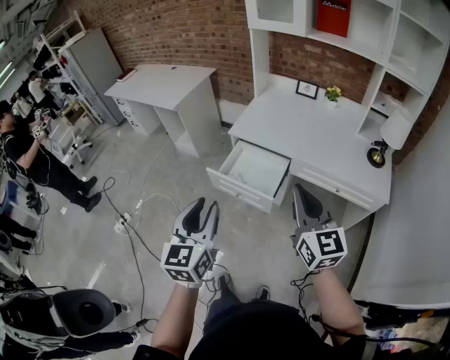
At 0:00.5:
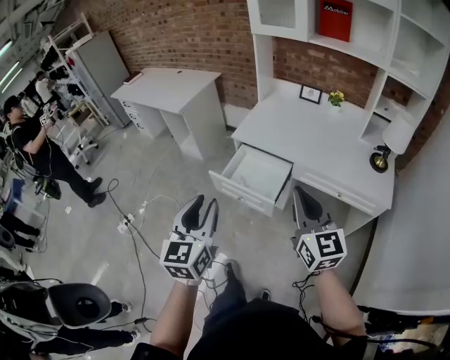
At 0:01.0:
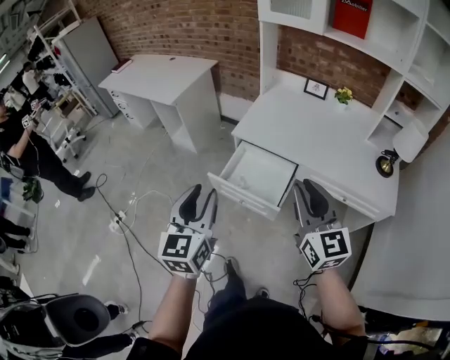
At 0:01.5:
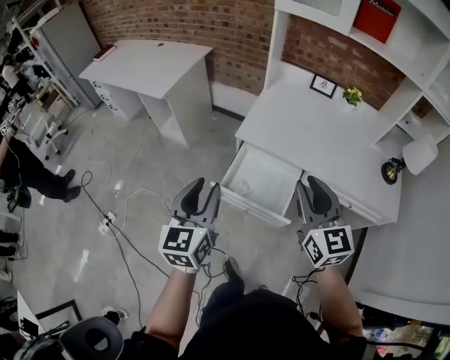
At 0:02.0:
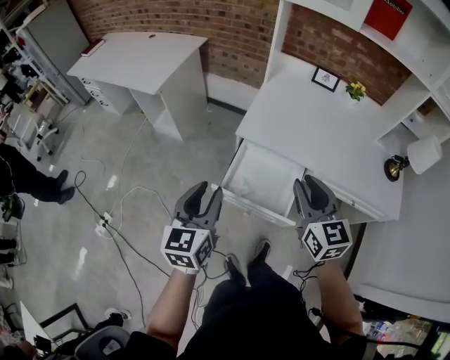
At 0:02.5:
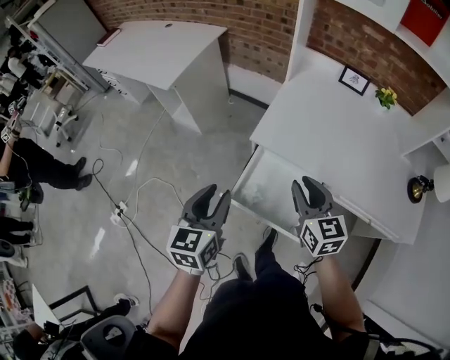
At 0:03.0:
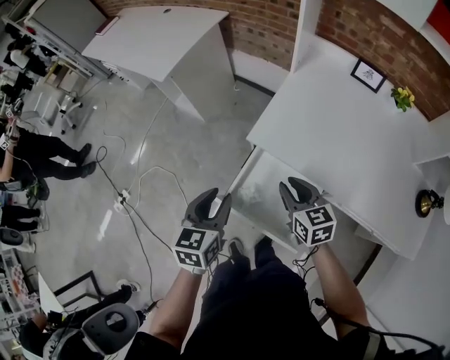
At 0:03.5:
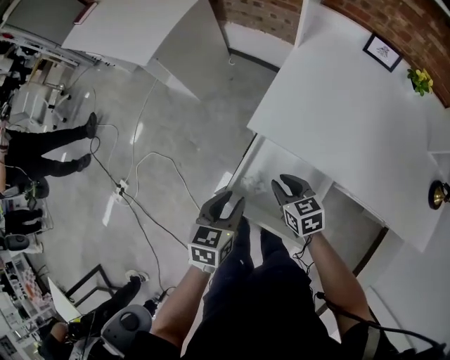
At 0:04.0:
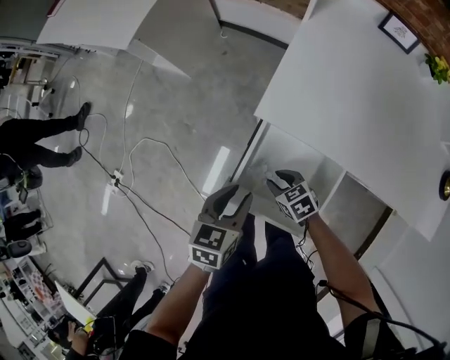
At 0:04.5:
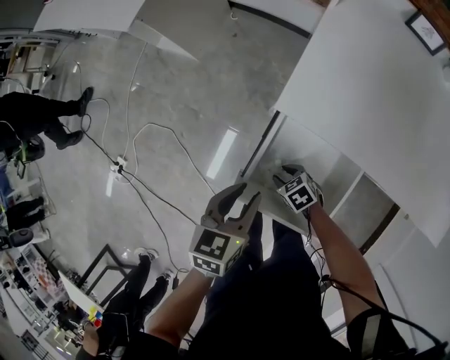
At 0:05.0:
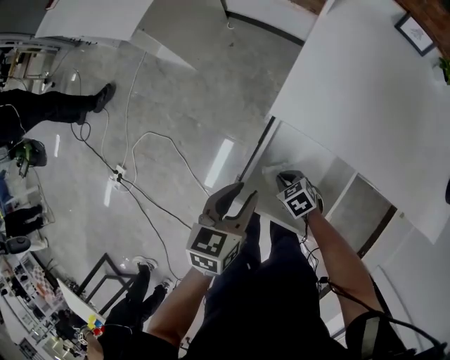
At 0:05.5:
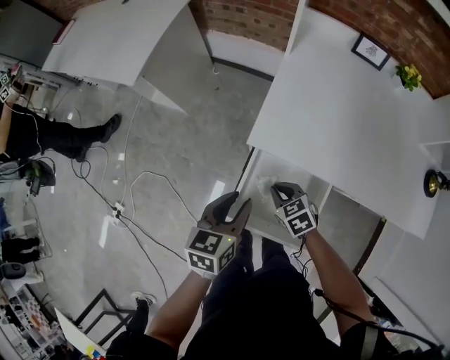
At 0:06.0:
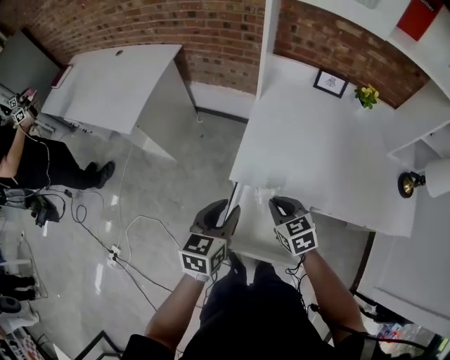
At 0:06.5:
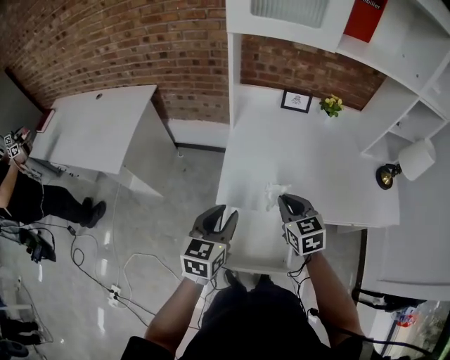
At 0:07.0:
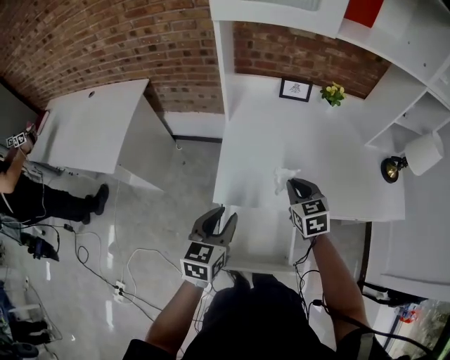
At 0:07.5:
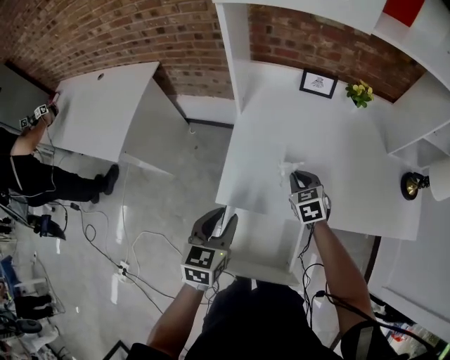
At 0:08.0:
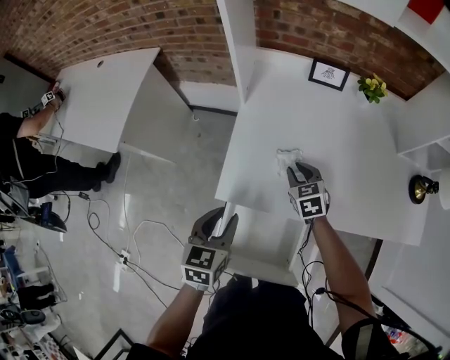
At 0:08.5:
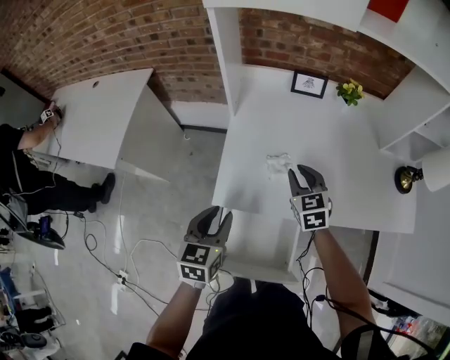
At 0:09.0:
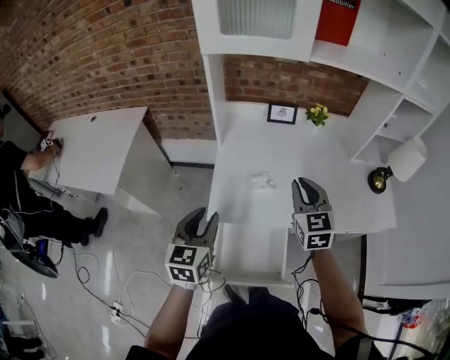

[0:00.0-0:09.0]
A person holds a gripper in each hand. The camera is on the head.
0:00.0 to 0:02.0: The two grippers go about 30 cm forward and to the left. The right gripper opens.
0:02.0 to 0:04.5: The right gripper goes about 50 cm downward, and points its fingers approximately 50 degrees further downward, while the left gripper is displaced downward by some 25 cm, and swivels roughly 30 degrees.
0:04.5 to 0:07.0: The left gripper is displaced upward by some 20 cm, and turns by about 30 degrees. The right gripper moves upward, approximately 35 cm, changes its angle by some 60 degrees, and closes its fingers.
0:07.0 to 0:09.0: The left gripper travels upward by about 5 cm; the right gripper heads upward, covering some 10 cm, and turns by roughly 20 degrees.

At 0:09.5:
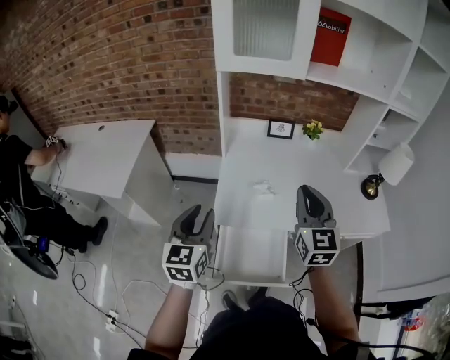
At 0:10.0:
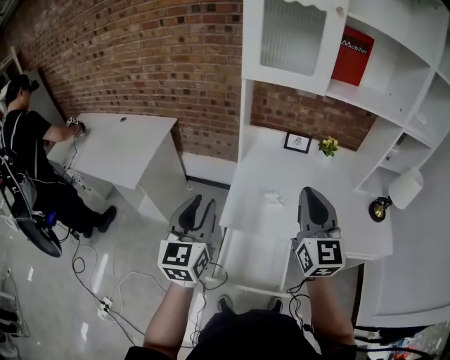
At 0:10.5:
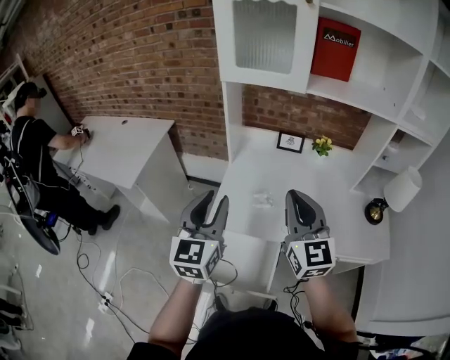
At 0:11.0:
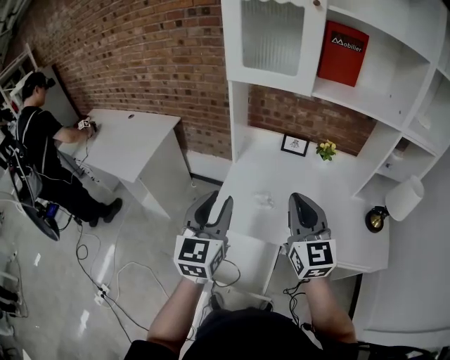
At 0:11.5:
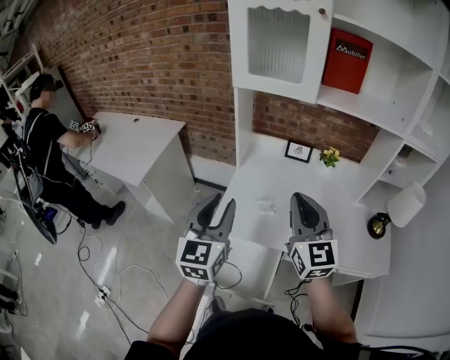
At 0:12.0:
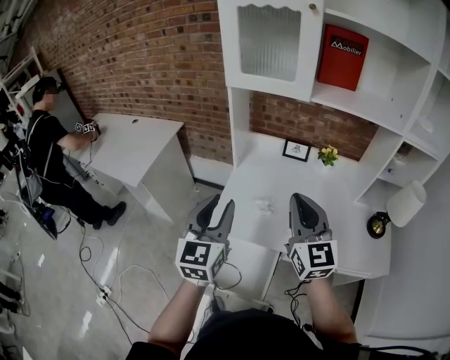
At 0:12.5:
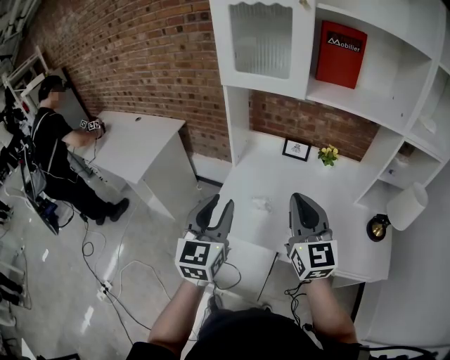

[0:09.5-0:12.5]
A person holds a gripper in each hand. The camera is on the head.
0:09.5 to 0:11.0: The left gripper is displaced to the right and upward by some 15 cm.
0:11.0 to 0:12.5: The grippers make only small movements.

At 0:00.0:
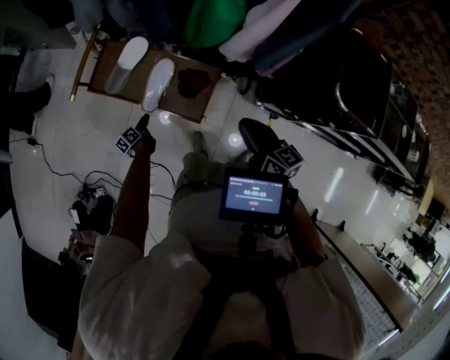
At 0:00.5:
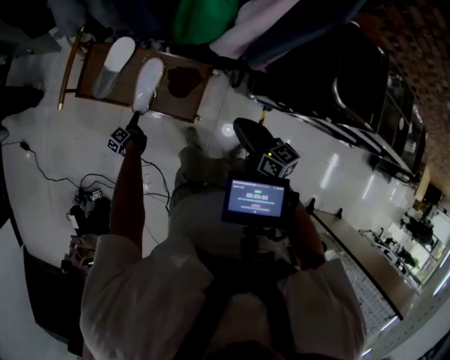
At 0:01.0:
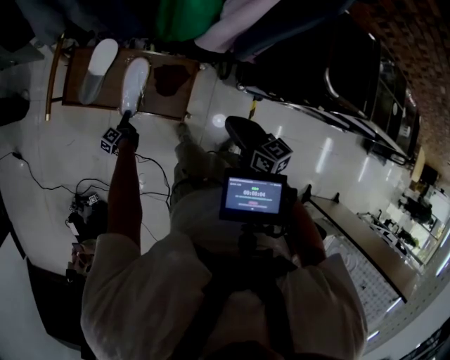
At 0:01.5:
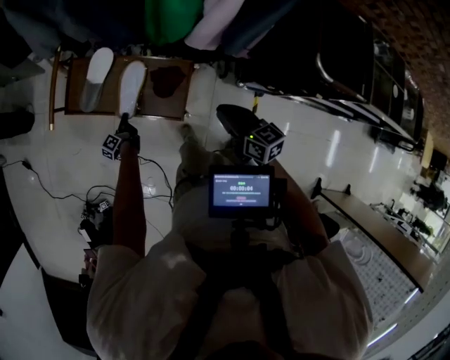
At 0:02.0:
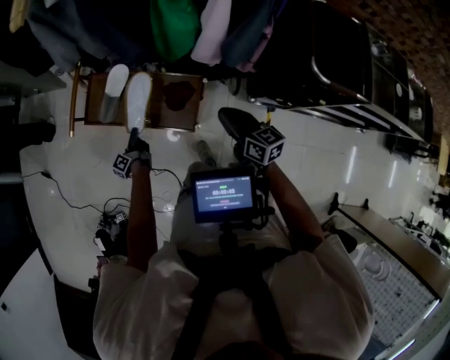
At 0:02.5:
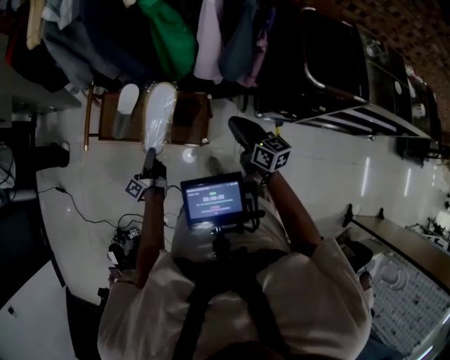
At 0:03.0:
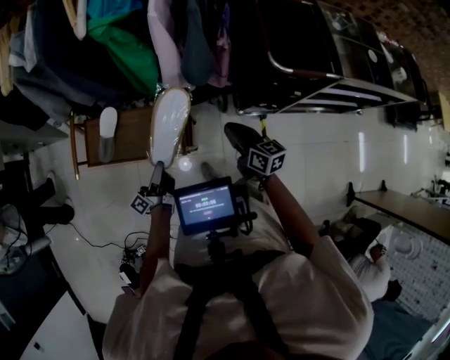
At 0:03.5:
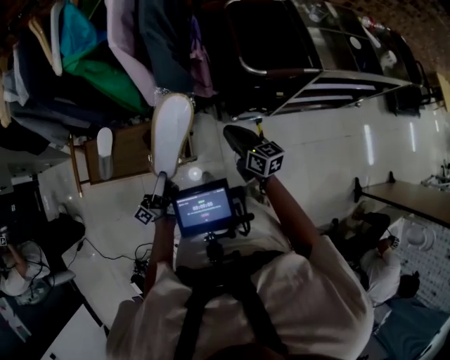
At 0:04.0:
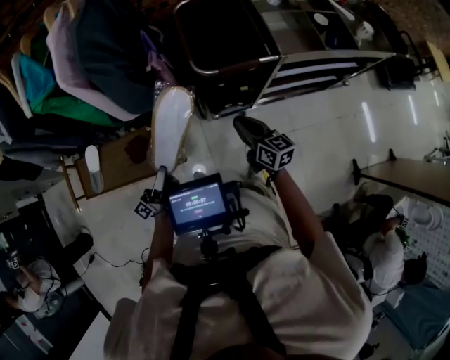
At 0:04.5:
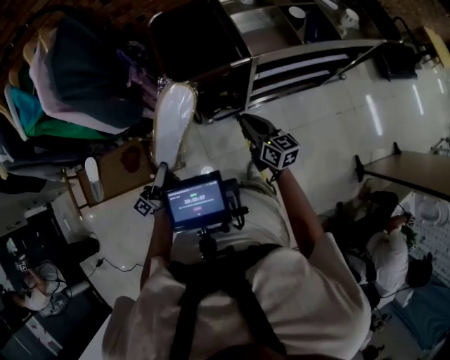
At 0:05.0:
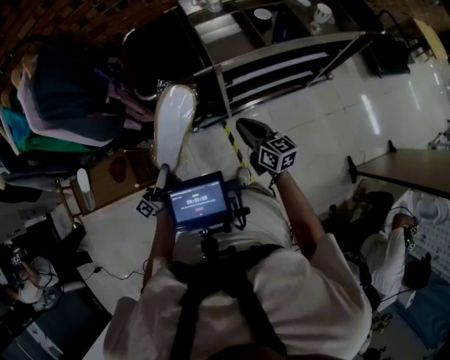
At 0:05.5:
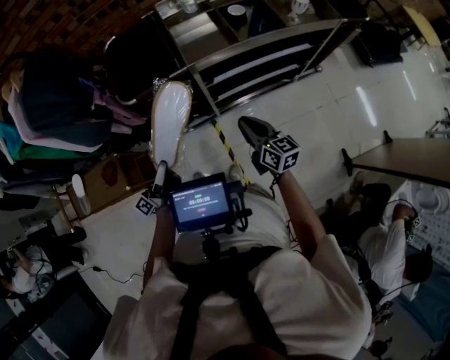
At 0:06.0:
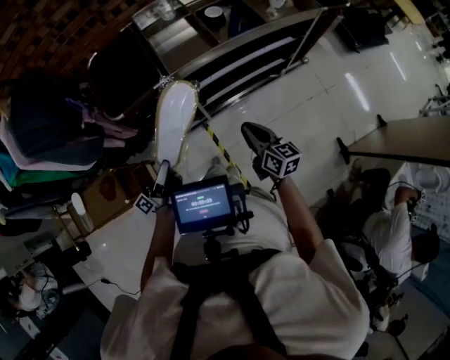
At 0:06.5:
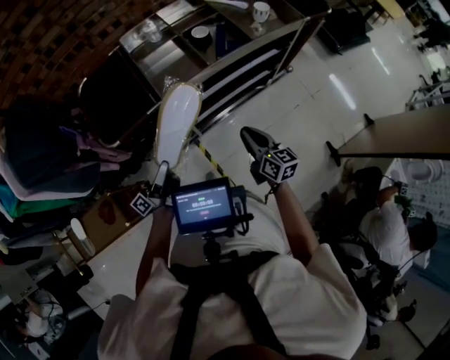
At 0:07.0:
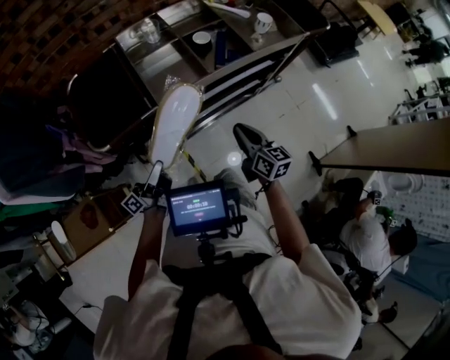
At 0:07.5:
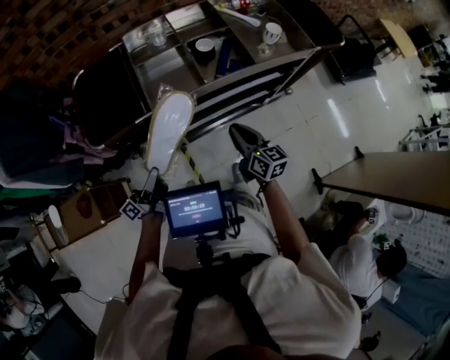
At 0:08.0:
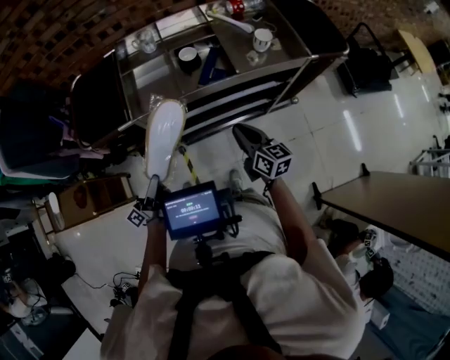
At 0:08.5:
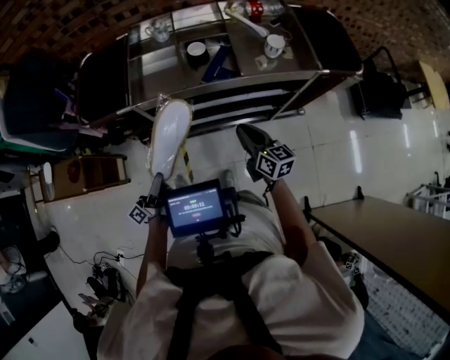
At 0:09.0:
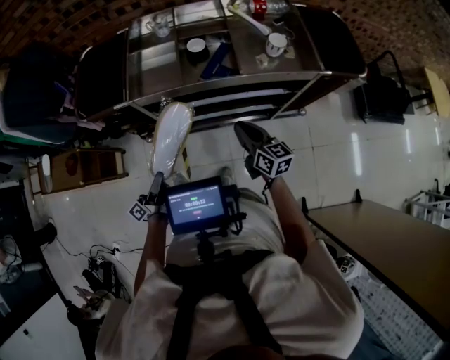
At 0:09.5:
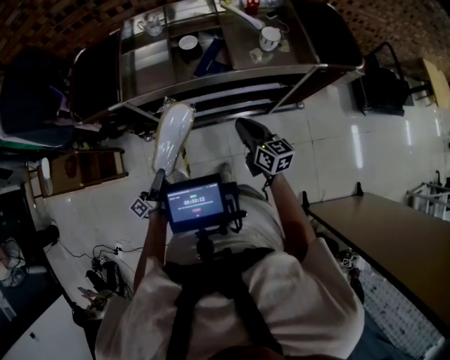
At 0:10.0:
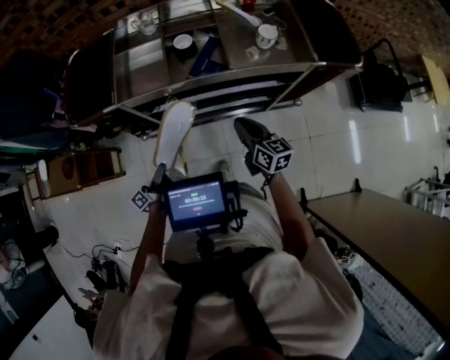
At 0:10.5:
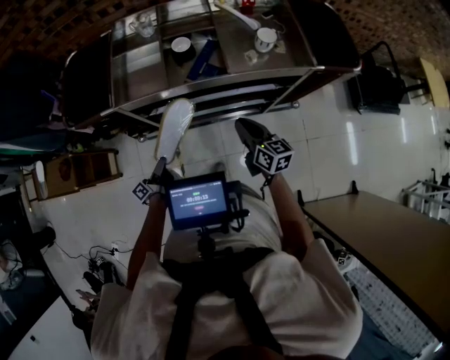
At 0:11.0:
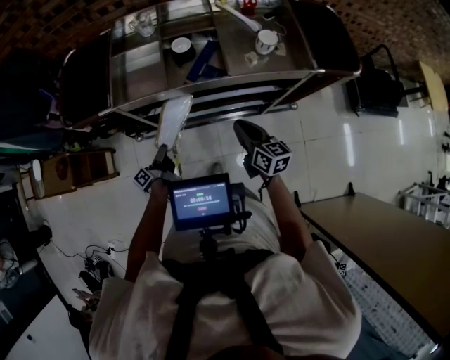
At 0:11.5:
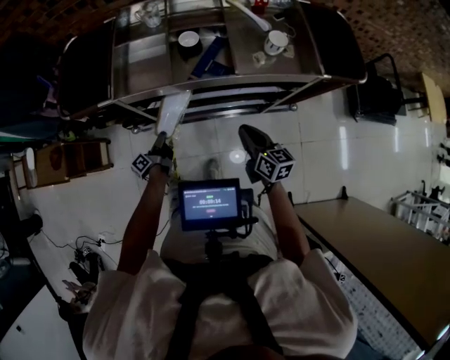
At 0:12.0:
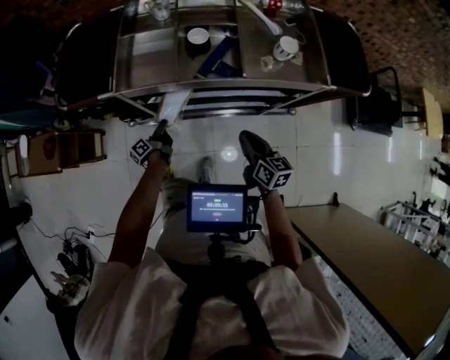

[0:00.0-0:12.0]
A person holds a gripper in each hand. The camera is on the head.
0:02.0 to 0:04.0: The right gripper ends up approximately 35 cm from where it was, and swivels approximately 30 degrees.
0:04.0 to 0:06.0: The right gripper changes place by approximately 35 cm.
0:06.0 to 0:08.0: The right gripper changes place by roughly 25 cm.
0:08.0 to 0:10.0: The right gripper shifts by roughly 10 cm.

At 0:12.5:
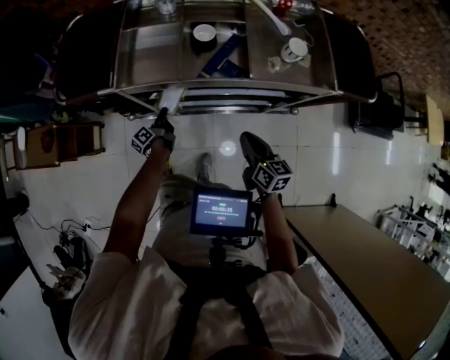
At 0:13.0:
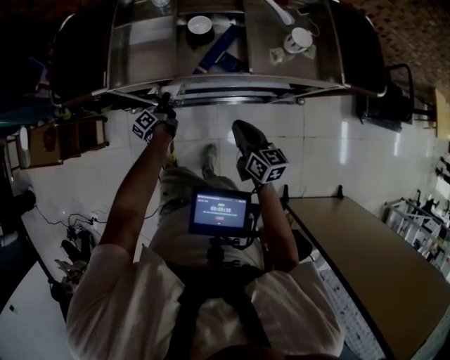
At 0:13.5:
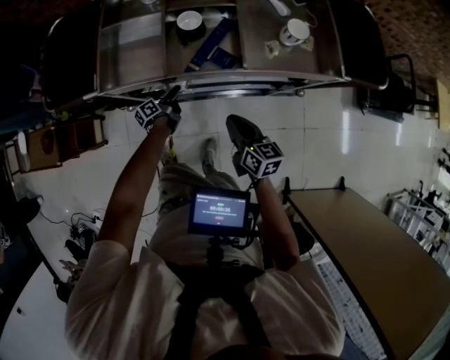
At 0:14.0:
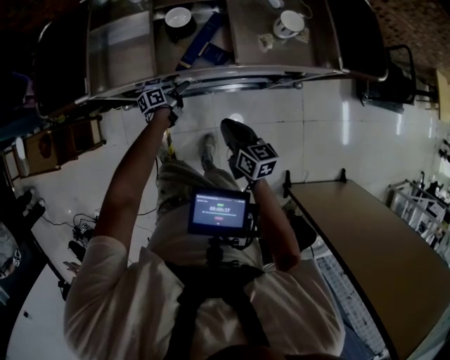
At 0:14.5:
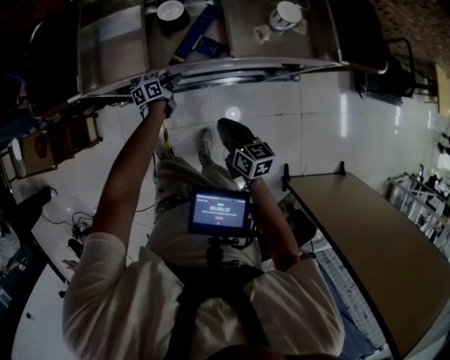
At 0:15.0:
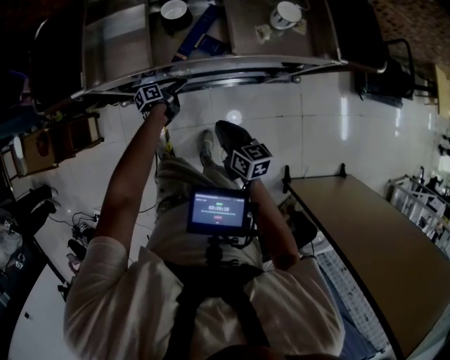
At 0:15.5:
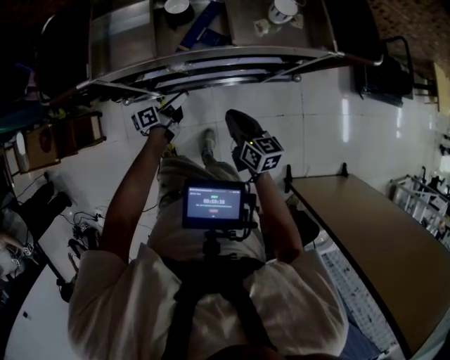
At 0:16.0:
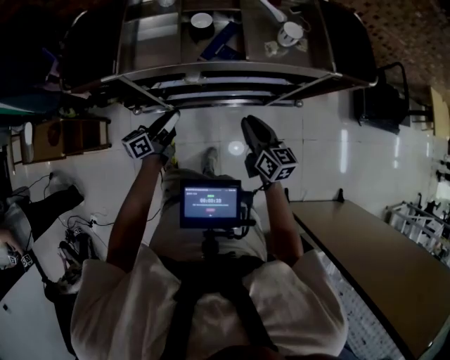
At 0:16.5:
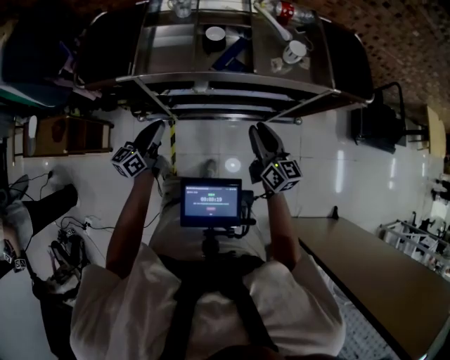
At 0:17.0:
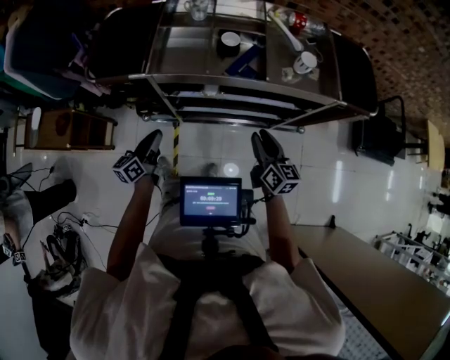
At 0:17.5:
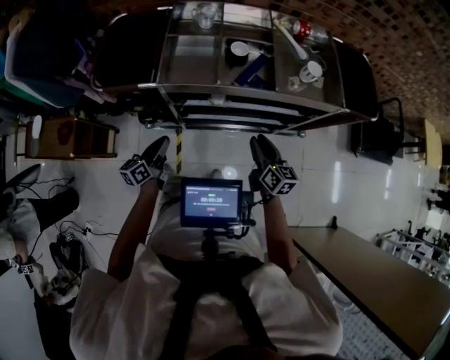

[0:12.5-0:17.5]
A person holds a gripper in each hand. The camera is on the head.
0:12.5 to 0:15.0: The right gripper goes roughly 10 cm downward.
0:15.0 to 0:17.5: The right gripper moves upward, some 10 cm, and opens up.
